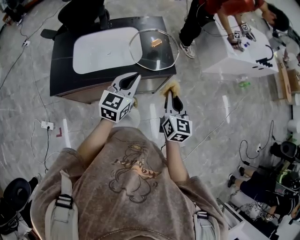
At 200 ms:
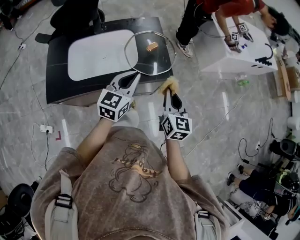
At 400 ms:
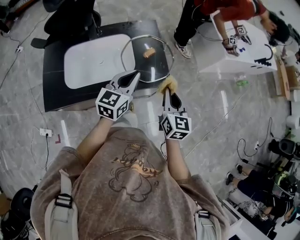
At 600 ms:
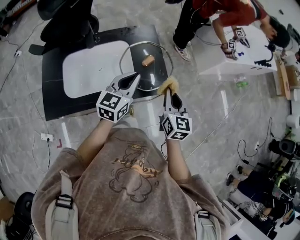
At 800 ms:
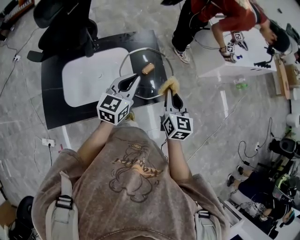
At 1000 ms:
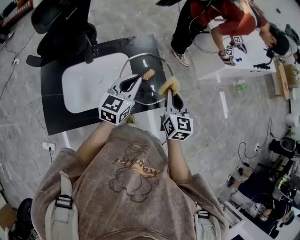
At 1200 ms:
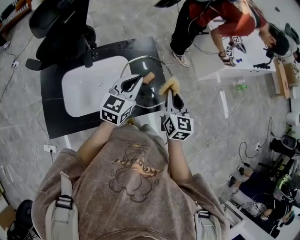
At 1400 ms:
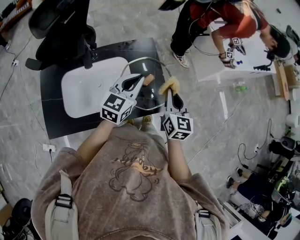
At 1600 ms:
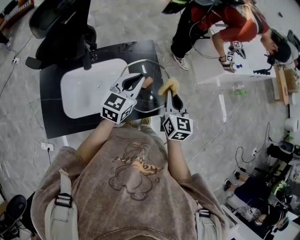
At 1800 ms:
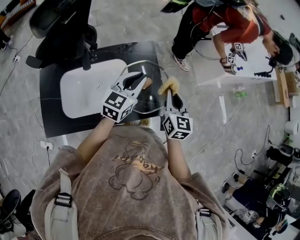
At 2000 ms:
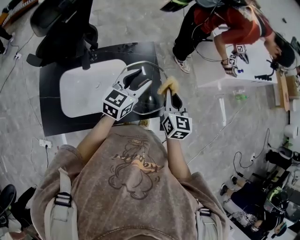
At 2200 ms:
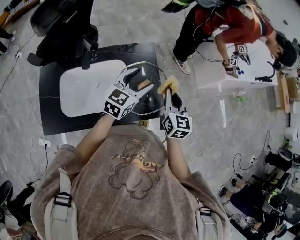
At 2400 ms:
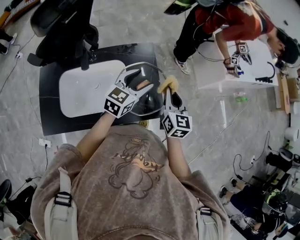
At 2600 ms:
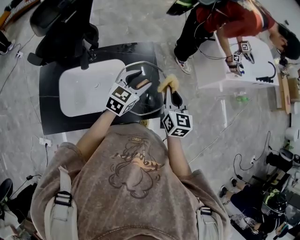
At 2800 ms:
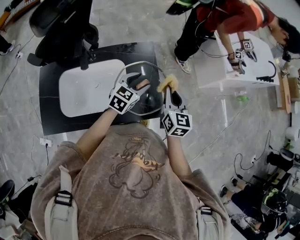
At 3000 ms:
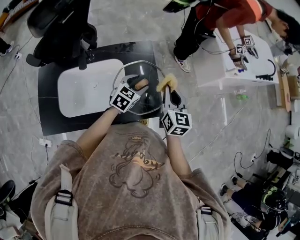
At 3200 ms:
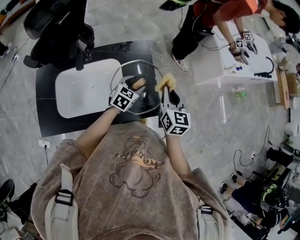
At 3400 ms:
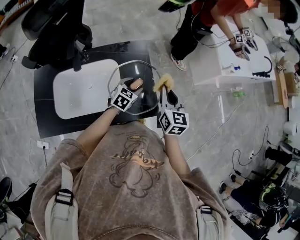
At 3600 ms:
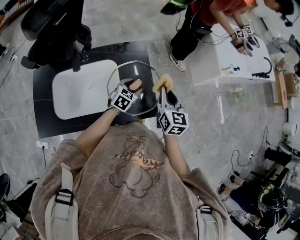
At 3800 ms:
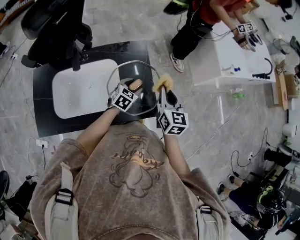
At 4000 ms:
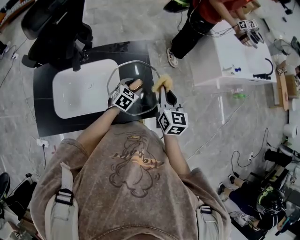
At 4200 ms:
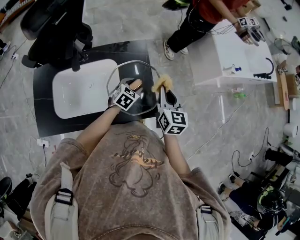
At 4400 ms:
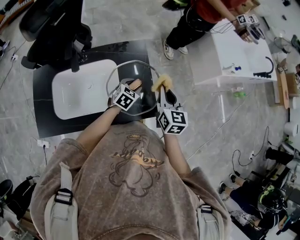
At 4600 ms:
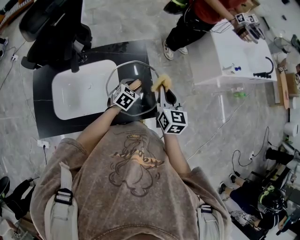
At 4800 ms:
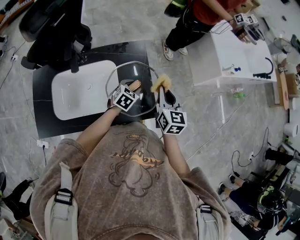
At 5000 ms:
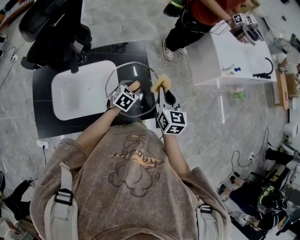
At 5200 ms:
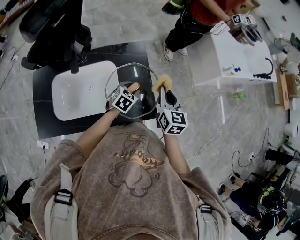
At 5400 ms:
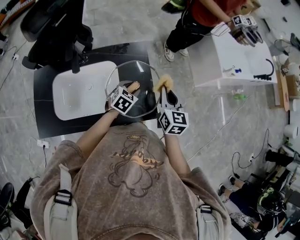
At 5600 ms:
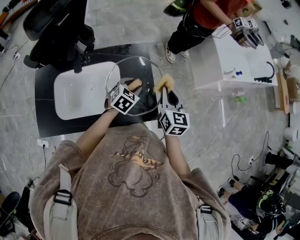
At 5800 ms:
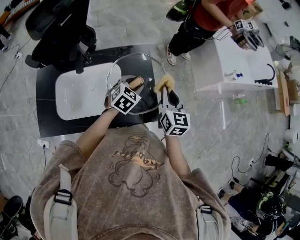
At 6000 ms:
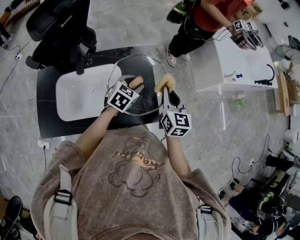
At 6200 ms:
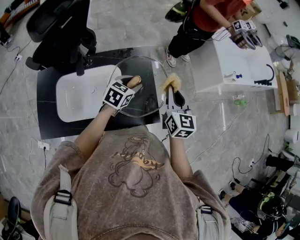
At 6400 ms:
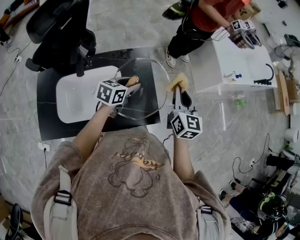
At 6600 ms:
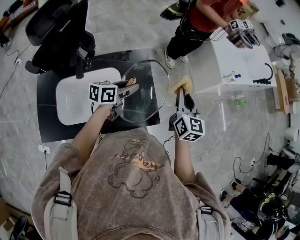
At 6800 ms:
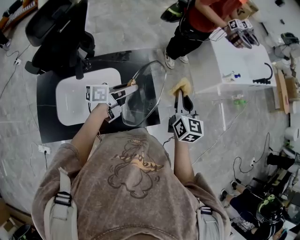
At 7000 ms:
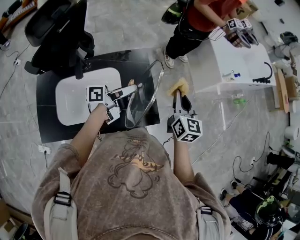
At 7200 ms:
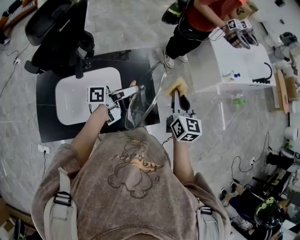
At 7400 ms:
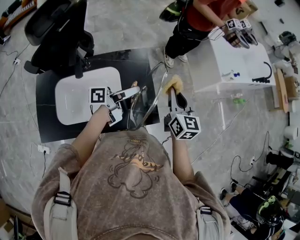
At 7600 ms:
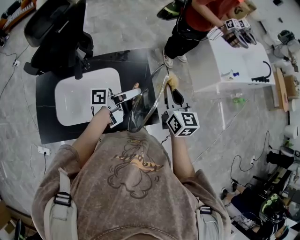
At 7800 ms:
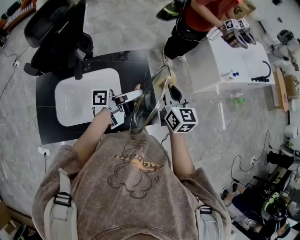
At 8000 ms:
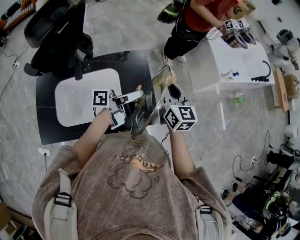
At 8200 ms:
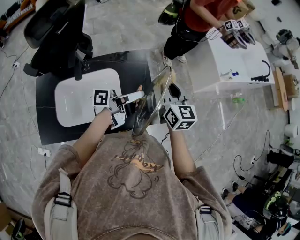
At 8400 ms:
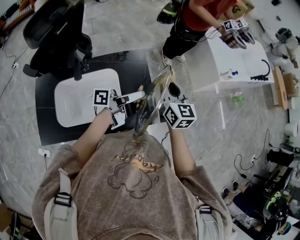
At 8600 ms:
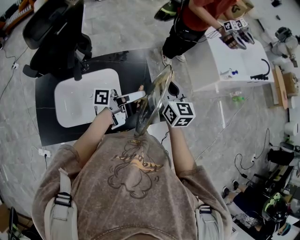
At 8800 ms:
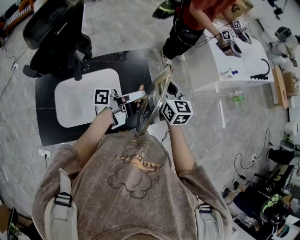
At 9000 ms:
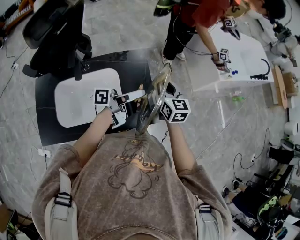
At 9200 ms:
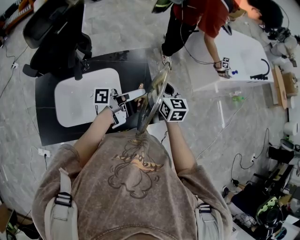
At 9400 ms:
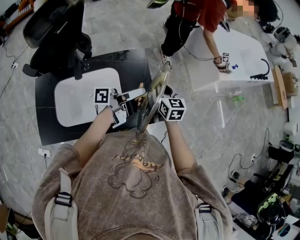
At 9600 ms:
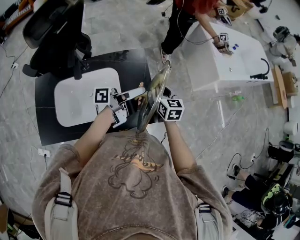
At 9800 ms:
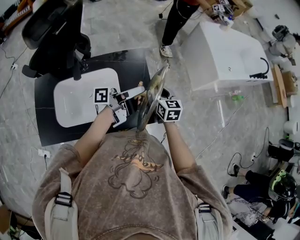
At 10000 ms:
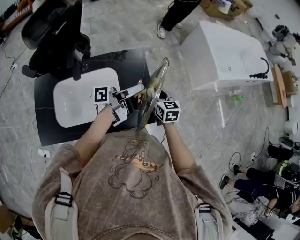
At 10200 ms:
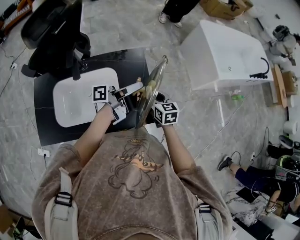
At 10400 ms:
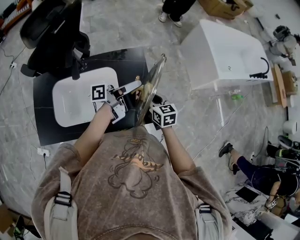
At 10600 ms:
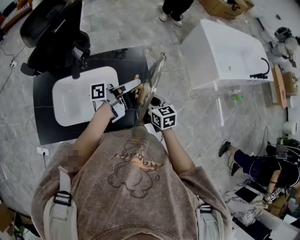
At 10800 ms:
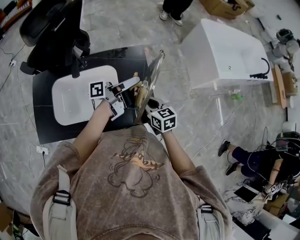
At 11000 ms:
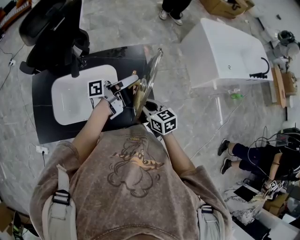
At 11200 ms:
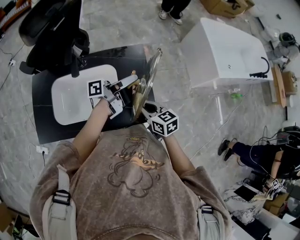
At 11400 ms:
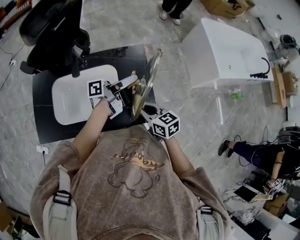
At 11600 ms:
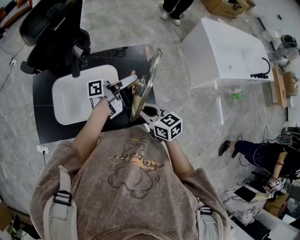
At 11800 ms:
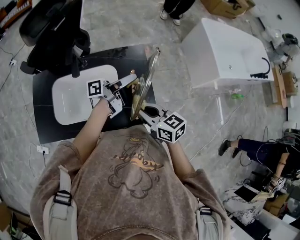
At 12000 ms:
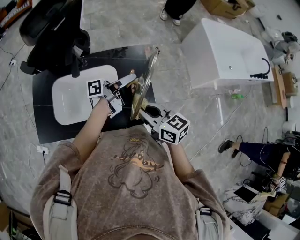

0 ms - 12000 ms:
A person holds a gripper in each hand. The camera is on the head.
0 ms - 1600 ms: The grippers both shift forward by roughly 25 cm.
1600 ms - 3000 ms: The left gripper travels downward by about 15 cm, changes its angle by approximately 20 degrees, and opens up.
3000 ms - 4400 ms: The left gripper shifts some 10 cm downward.
4400 ms - 6000 ms: The left gripper heads upward, covering about 10 cm.
6000 ms - 7600 ms: The left gripper shifts roughly 10 cm upward, and tips its fingers upward by approximately 50 degrees.
7600 ms - 9000 ms: The right gripper changes place by roughly 5 cm.
9000 ms - 10400 ms: The right gripper shifts roughly 10 cm downward and backward.
10400 ms - 12000 ms: The right gripper travels upward and backward by approximately 15 cm, and turns by about 30 degrees.

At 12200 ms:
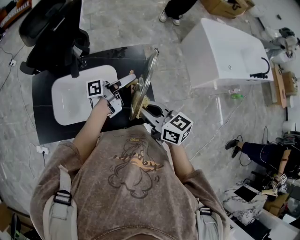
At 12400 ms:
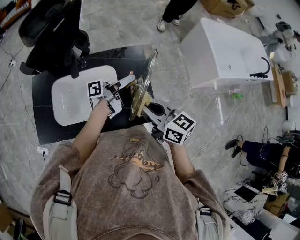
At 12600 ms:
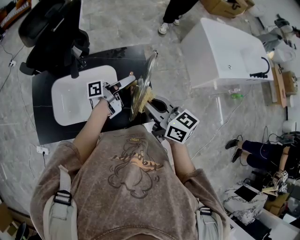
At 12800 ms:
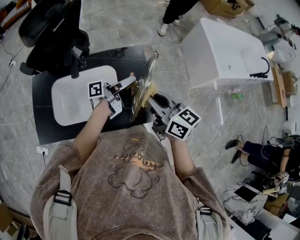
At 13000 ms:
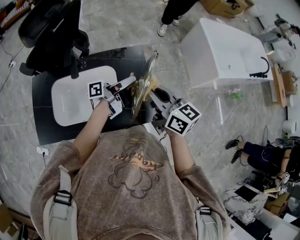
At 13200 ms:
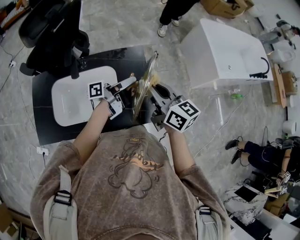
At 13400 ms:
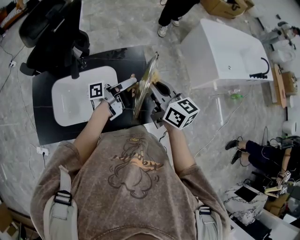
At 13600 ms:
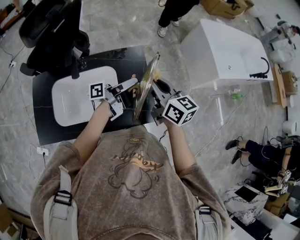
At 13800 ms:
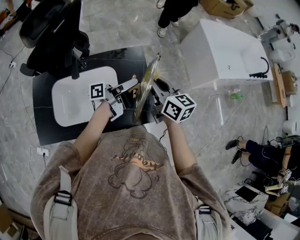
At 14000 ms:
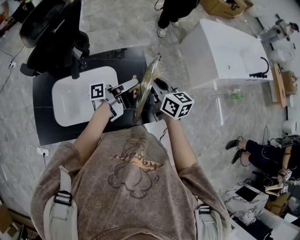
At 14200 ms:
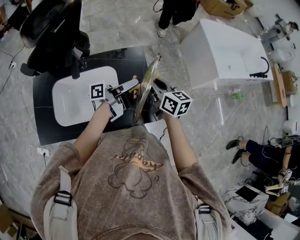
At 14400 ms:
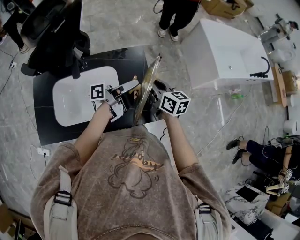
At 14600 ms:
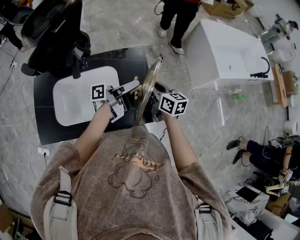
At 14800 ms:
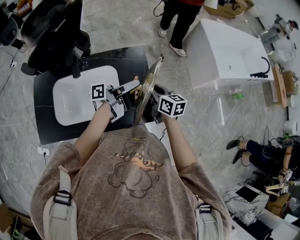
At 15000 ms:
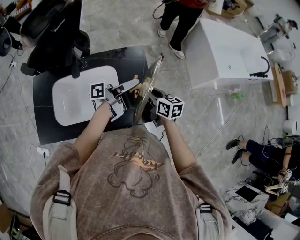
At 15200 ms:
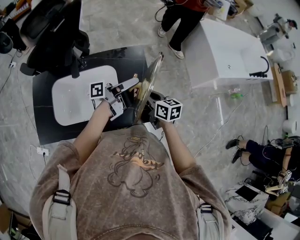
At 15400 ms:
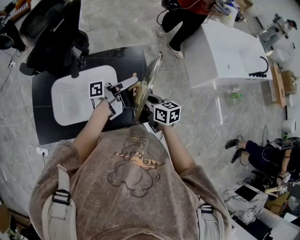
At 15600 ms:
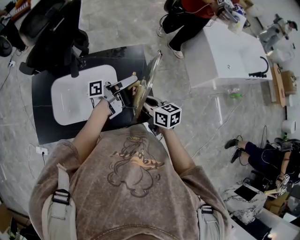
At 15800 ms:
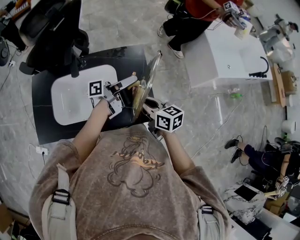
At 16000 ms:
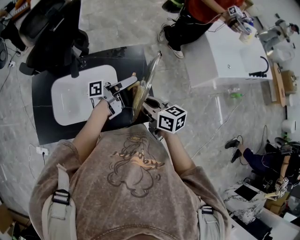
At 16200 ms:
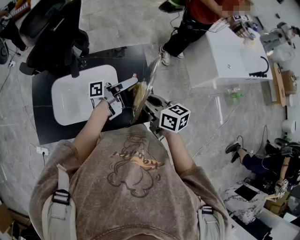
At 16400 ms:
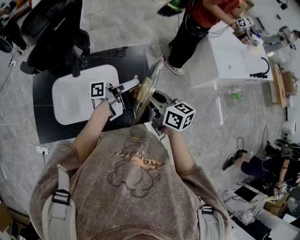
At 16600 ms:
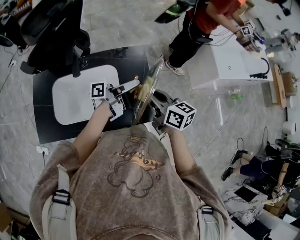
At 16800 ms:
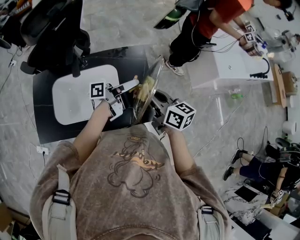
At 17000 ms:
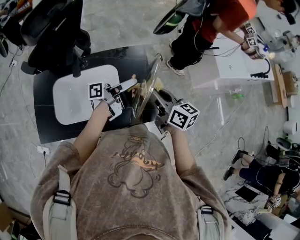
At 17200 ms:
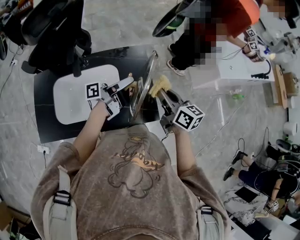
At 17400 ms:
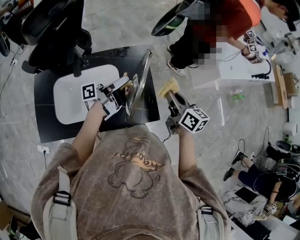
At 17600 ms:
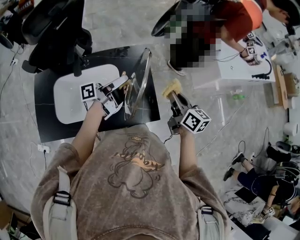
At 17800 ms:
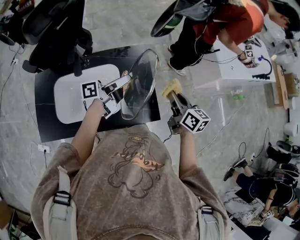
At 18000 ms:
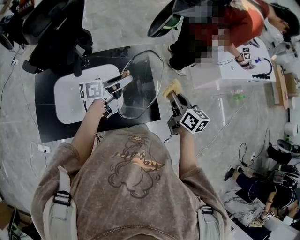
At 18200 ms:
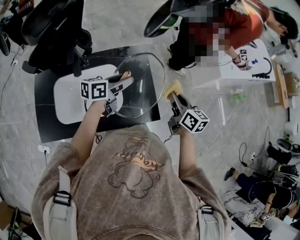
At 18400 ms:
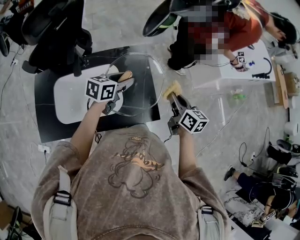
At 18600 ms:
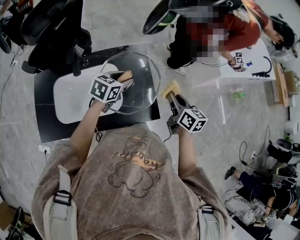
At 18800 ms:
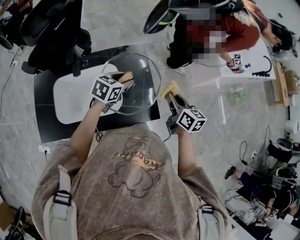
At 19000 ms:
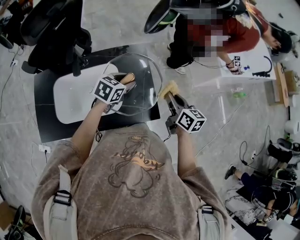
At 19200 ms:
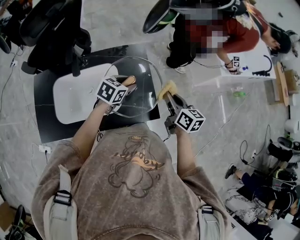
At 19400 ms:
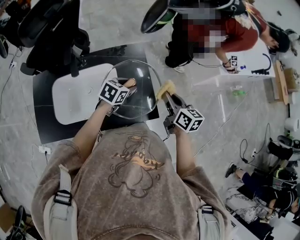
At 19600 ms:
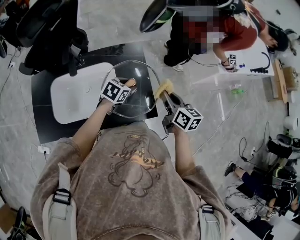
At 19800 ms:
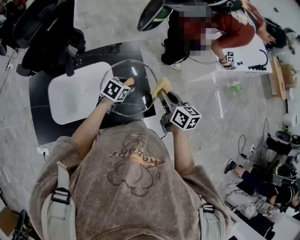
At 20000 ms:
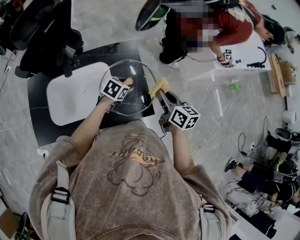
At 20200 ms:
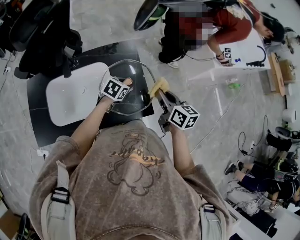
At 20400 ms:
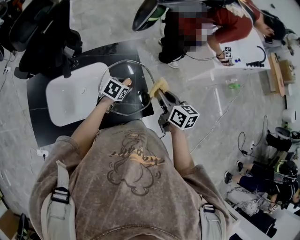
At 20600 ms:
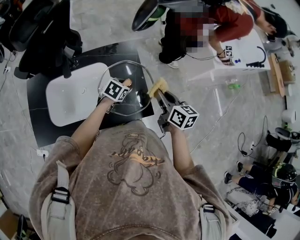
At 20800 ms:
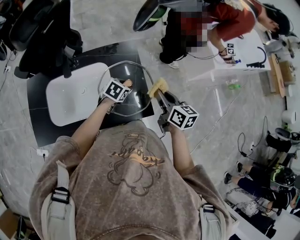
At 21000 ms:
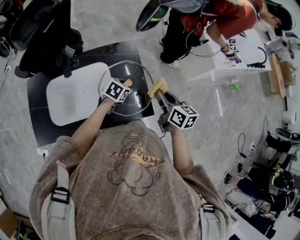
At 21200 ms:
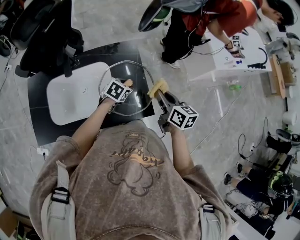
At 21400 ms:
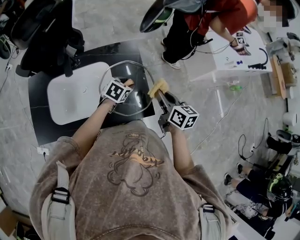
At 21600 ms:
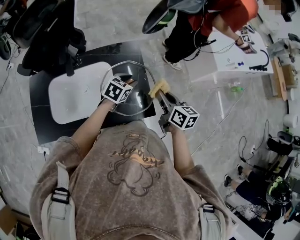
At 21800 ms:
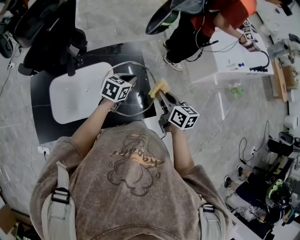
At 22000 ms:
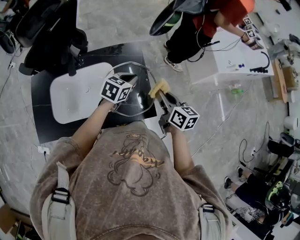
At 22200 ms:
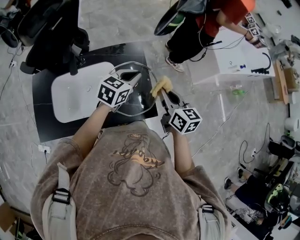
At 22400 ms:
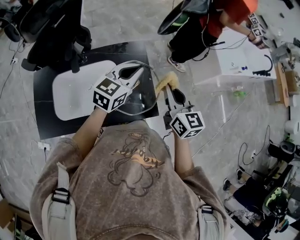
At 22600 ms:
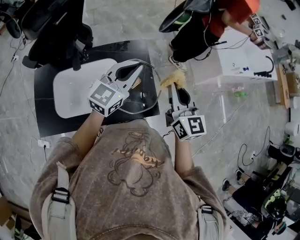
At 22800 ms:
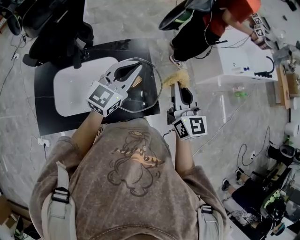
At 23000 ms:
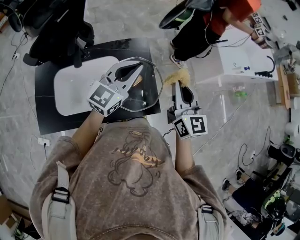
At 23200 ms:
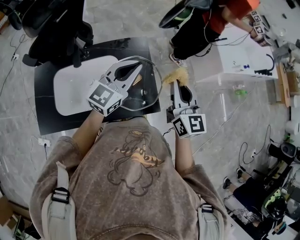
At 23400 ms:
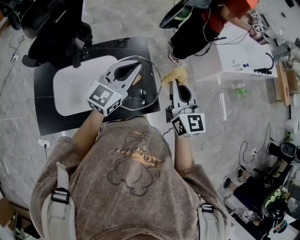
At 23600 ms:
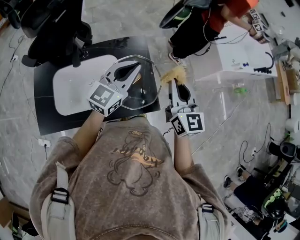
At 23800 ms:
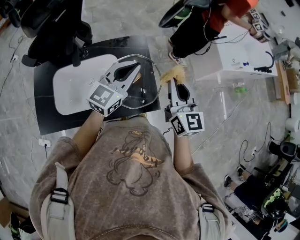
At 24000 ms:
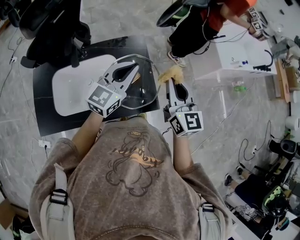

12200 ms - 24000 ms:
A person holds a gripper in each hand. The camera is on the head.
12200 ms - 13600 ms: The right gripper shifts some 10 cm forward.
13600 ms - 15200 ms: The right gripper heads downward, covering some 15 cm, and rotates approximately 20 degrees.
15200 ms - 16600 ms: The right gripper shifts approximately 10 cm upward.
16600 ms - 18200 ms: The left gripper tips its fingers downward by approximately 30 degrees; the right gripper is displaced to the right by roughly 10 cm.
18200 ms - 19600 ms: The left gripper travels downward by approximately 10 cm, and angles its fingers downward, by roughly 30 degrees.
19600 ms - 21000 ms: The grippers stay close to where they were, moving slightly.
21000 ms - 22600 ms: The right gripper travels upward by roughly 15 cm, and changes its angle by approximately 30 degrees. Meanwhile the left gripper moves upward, about 25 cm, points its fingers approximately 50 degrees further upward, and closes up.
22600 ms - 24000 ms: The grippers make only small movements.
